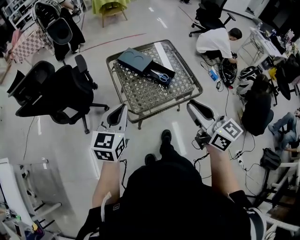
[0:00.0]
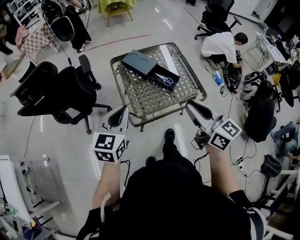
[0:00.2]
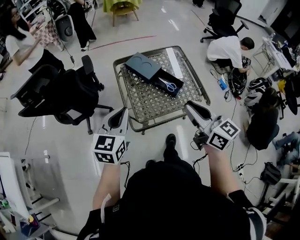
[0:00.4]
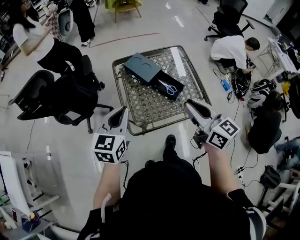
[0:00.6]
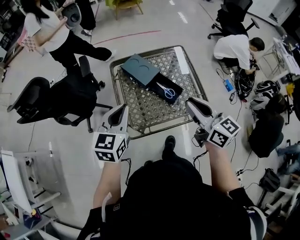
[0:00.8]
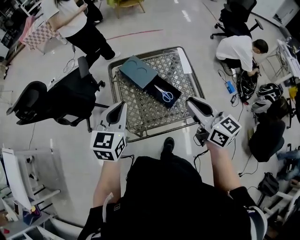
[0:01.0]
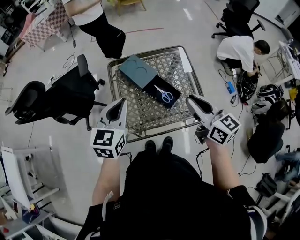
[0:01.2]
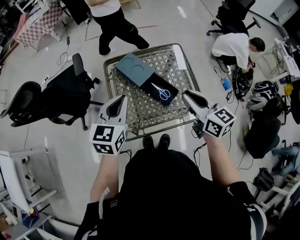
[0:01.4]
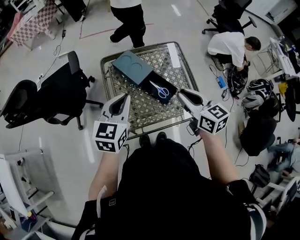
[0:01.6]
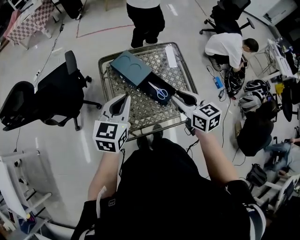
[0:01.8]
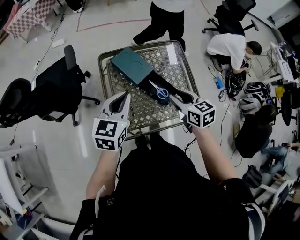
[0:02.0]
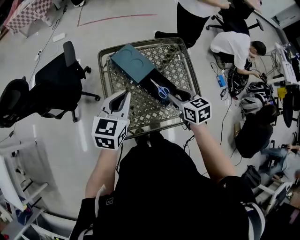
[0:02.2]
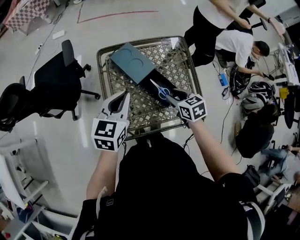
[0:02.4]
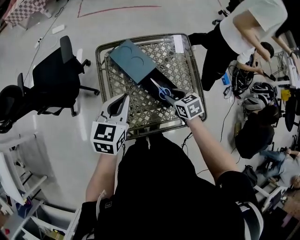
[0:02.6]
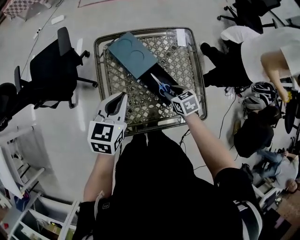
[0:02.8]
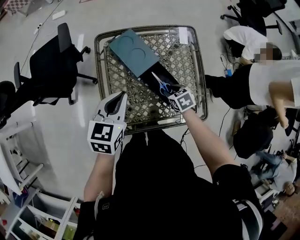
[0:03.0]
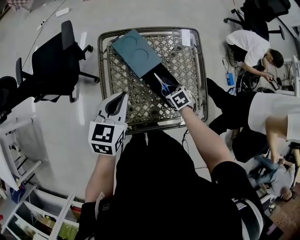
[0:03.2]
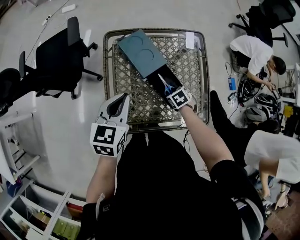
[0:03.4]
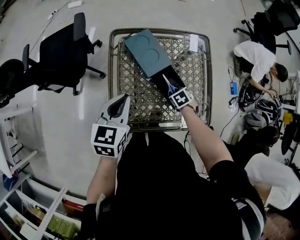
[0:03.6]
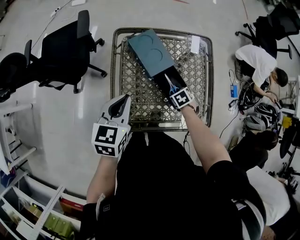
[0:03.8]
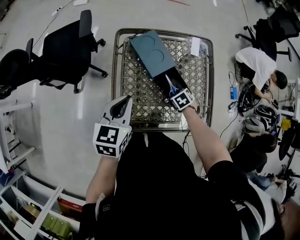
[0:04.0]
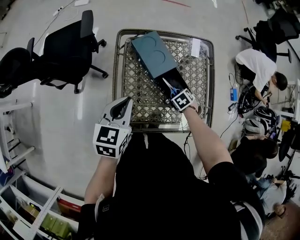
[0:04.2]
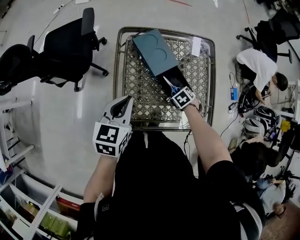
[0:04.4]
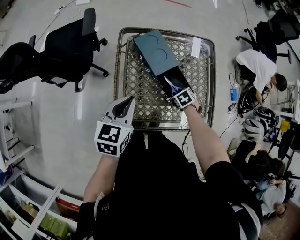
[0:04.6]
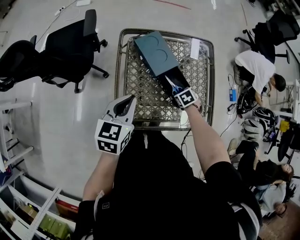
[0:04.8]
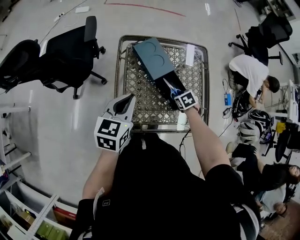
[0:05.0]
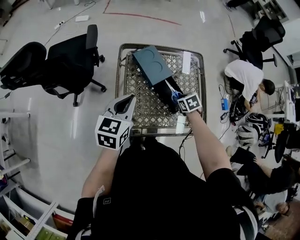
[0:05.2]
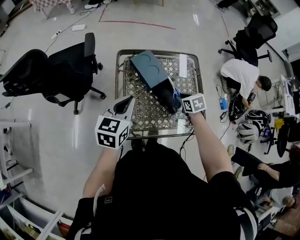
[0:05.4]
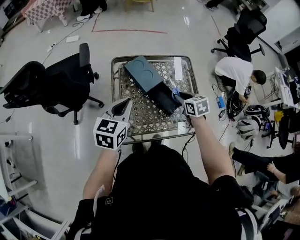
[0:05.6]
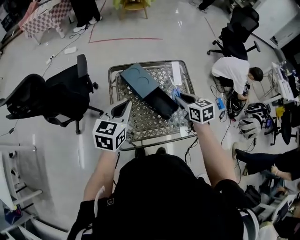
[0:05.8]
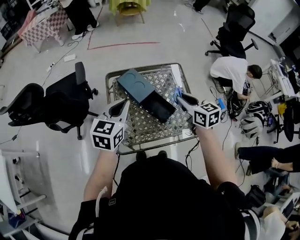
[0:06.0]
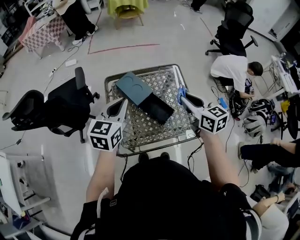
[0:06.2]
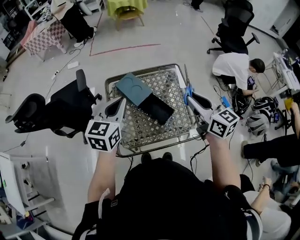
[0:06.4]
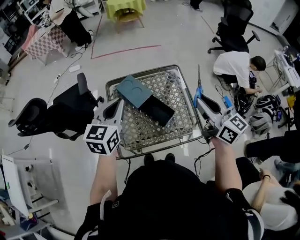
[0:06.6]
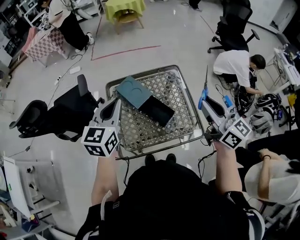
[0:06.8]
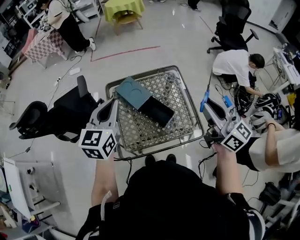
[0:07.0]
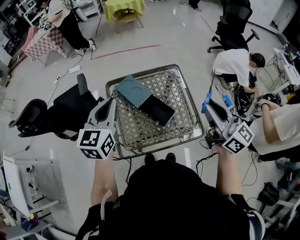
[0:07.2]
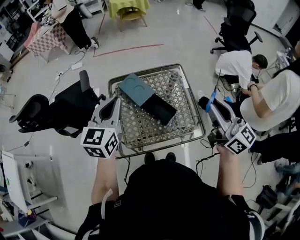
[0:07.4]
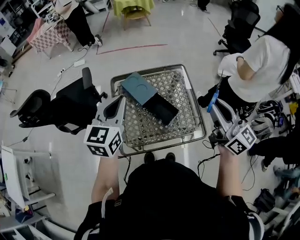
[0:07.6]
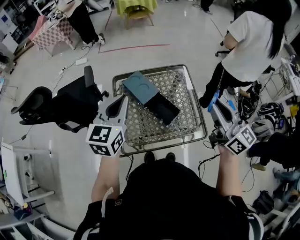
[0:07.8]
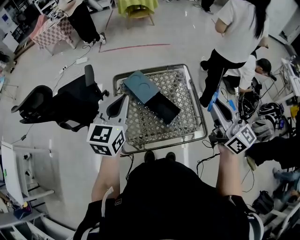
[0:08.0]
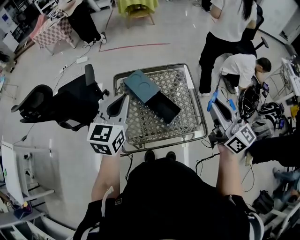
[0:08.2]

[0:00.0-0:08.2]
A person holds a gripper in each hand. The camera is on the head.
0:00.0 to 0:01.6: The left gripper travels forward and to the right by some 20 cm; the right gripper goes about 25 cm forward and downward.
0:01.6 to 0:03.2: The right gripper heads downward, covering approximately 35 cm, and angles its fingers downward, by roughly 50 degrees. Meanwhile the left gripper shifts some 10 cm downward and forward.
0:03.2 to 0:05.0: The left gripper ends up some 5 cm from where it was.
0:05.0 to 0:06.6: The left gripper heads upward and to the right, covering roughly 15 cm, while the right gripper goes approximately 40 cm upward, and points its fingers roughly 70 degrees further upward.
0:06.6 to 0:08.2: The grippers move only a little.

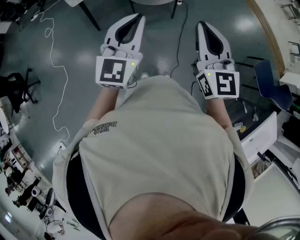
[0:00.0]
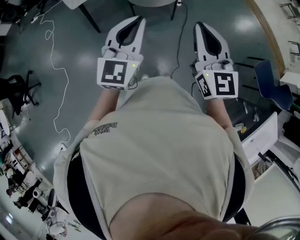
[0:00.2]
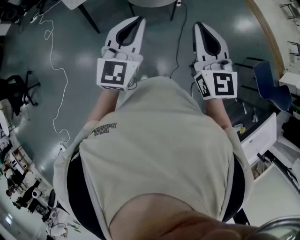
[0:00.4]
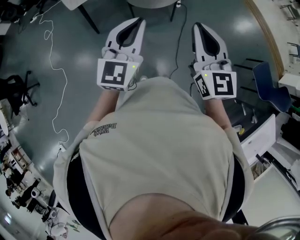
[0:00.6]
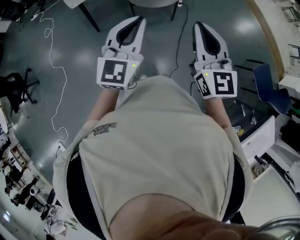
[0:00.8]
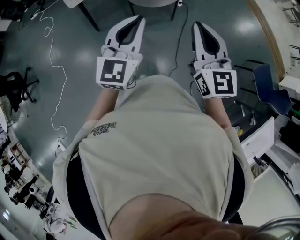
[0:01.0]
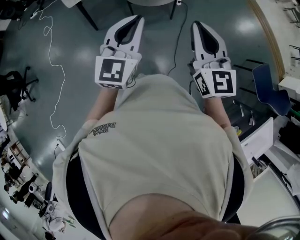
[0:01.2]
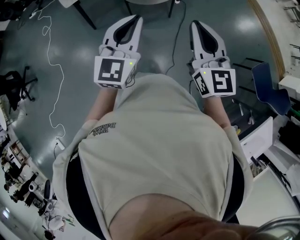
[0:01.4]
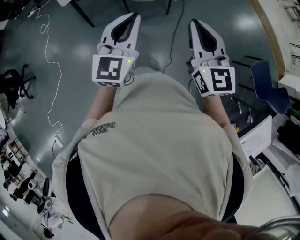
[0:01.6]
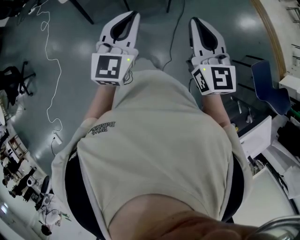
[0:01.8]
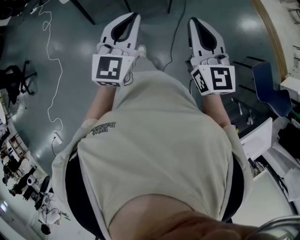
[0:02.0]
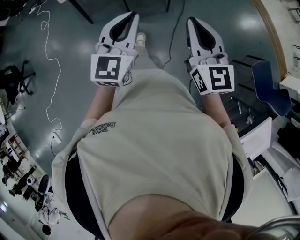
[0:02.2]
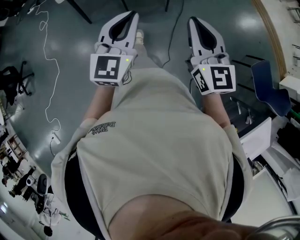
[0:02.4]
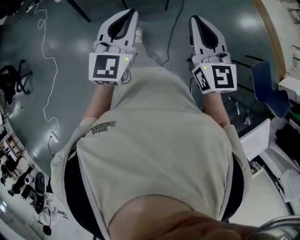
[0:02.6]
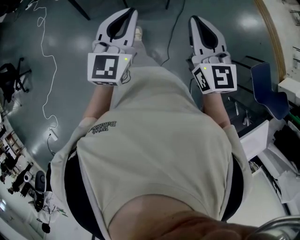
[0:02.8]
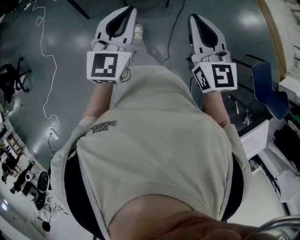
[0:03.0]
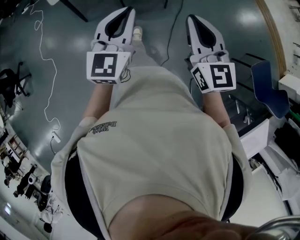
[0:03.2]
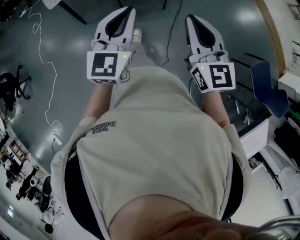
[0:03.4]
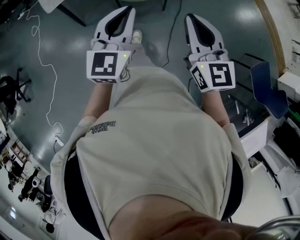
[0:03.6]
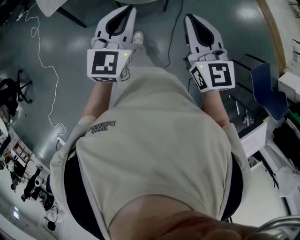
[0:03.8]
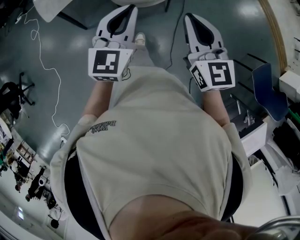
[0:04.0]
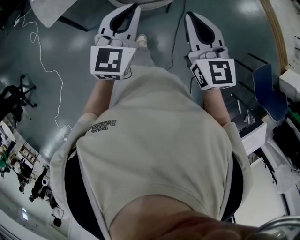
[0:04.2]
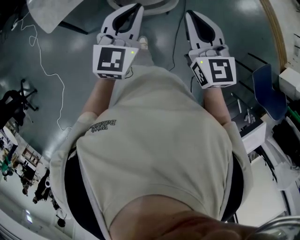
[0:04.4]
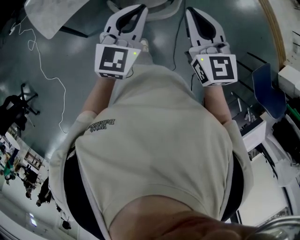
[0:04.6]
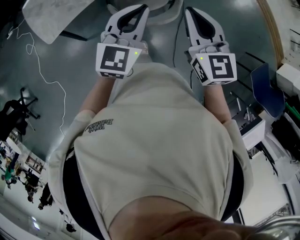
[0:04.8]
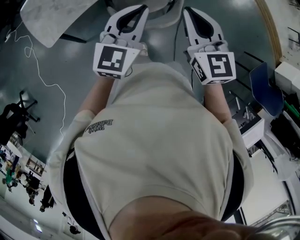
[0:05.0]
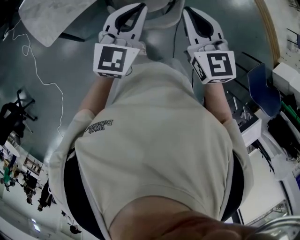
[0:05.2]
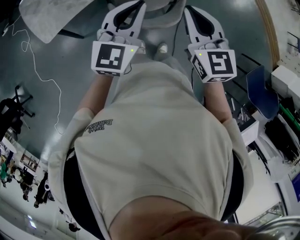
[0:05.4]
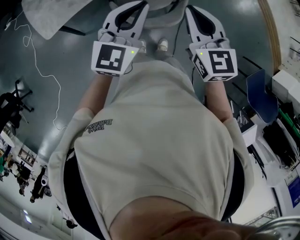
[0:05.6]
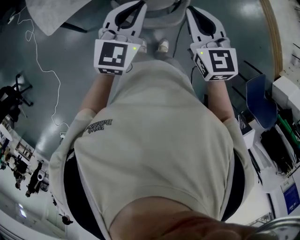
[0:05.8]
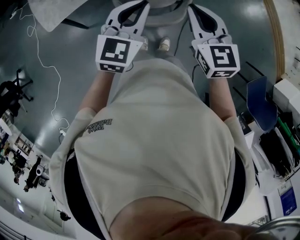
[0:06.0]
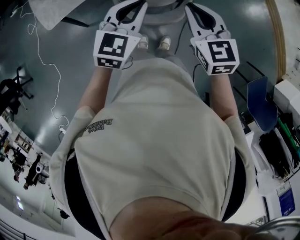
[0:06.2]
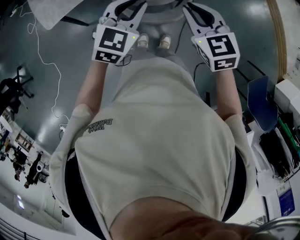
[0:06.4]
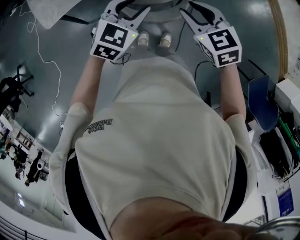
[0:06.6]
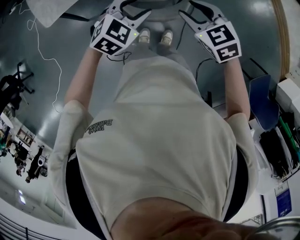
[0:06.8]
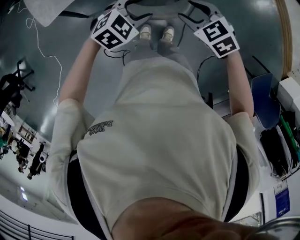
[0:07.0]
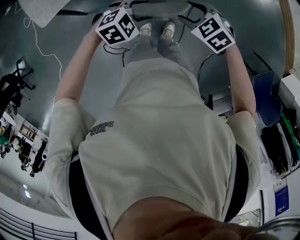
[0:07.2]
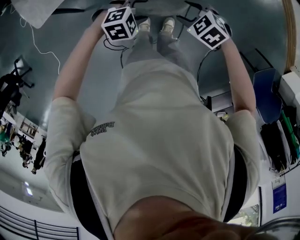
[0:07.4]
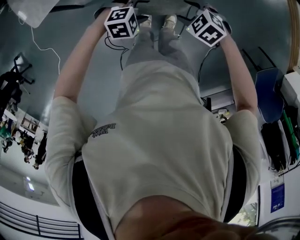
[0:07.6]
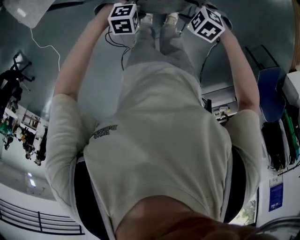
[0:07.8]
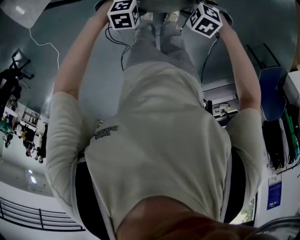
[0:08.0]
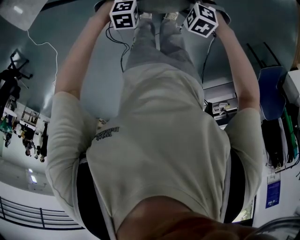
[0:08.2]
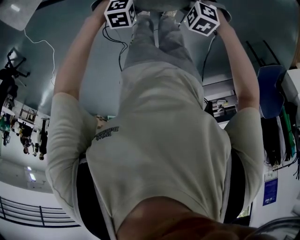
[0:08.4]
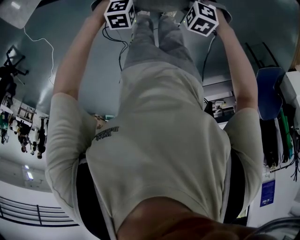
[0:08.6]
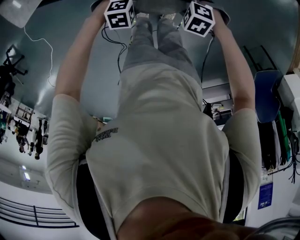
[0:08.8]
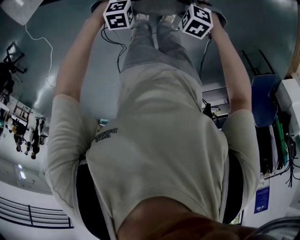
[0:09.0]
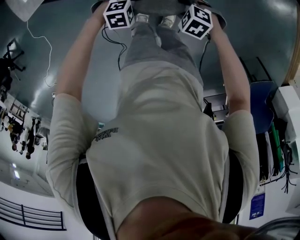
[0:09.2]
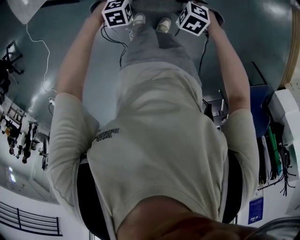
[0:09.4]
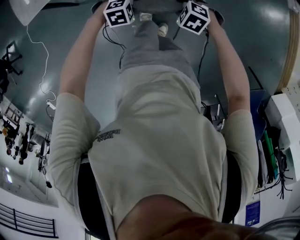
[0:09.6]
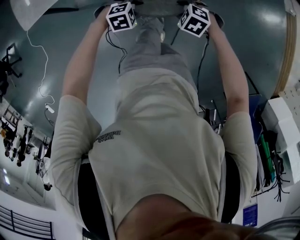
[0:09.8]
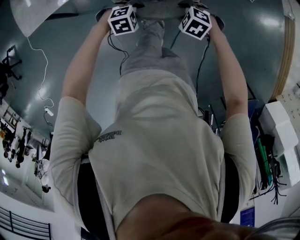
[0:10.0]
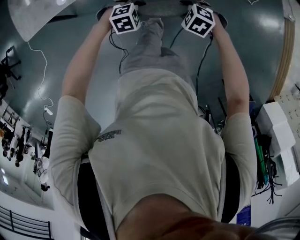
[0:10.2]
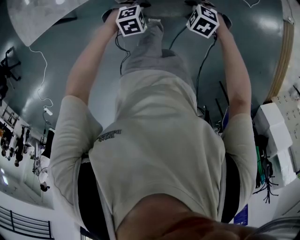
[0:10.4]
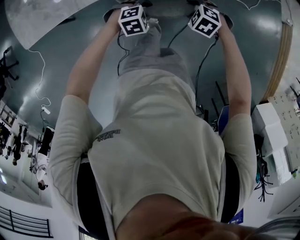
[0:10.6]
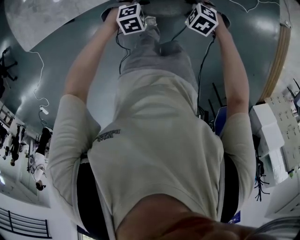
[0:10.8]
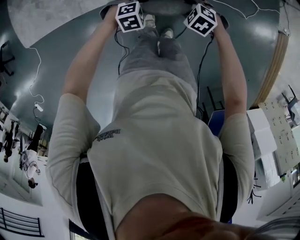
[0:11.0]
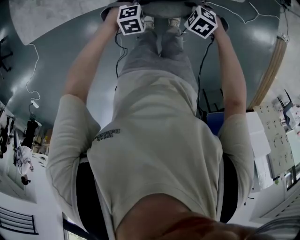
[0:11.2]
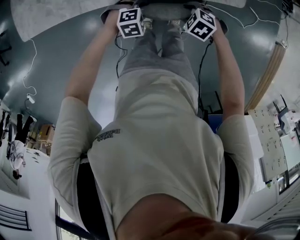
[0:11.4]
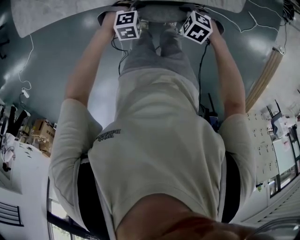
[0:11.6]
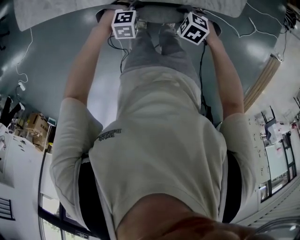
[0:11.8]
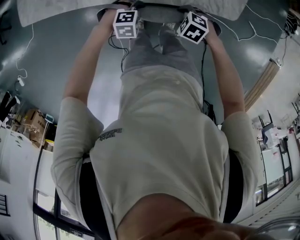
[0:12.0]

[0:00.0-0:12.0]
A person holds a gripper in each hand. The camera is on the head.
0:00.0 to 0:01.6: Both grippers travel together to the right, approximately 5 cm.
0:01.6 to 0:03.0: The left gripper changes place by roughly 5 cm. The right gripper ends up some 5 cm from where it was.
0:03.0 to 0:04.4: The two grippers go about 30 cm forward.
0:04.4 to 0:06.0: Both grippers travel together forward, about 10 cm.
0:06.0 to 0:07.6: Both grippers travel together downward, about 30 cm. The left gripper points its fingers some 40 degrees further downward, and opens up. Meanwhile the right gripper points its fingers some 40 degrees further downward, and opens up.
0:07.6 to 0:09.0: The grippers both shift downward by approximately 10 cm.
0:09.0 to 0:10.4: The left gripper moves approximately 25 cm, and turns by about 20 degrees. The right gripper moves some 25 cm.
0:10.4 to 0:12.0: The left gripper shifts by about 10 cm, while the right gripper moves approximately 15 cm.

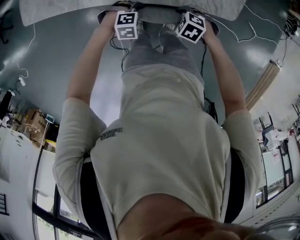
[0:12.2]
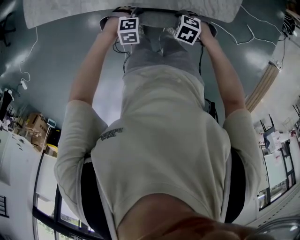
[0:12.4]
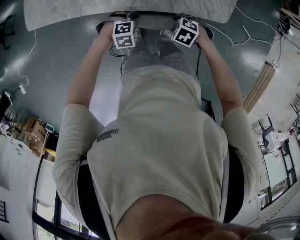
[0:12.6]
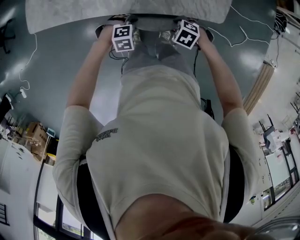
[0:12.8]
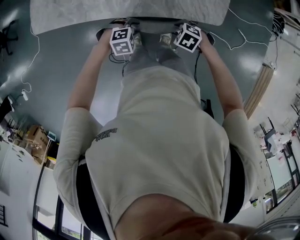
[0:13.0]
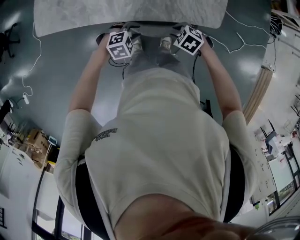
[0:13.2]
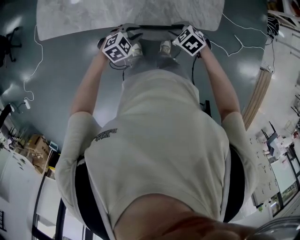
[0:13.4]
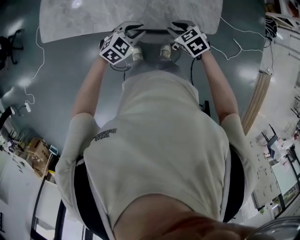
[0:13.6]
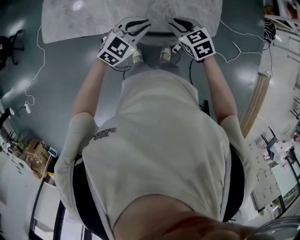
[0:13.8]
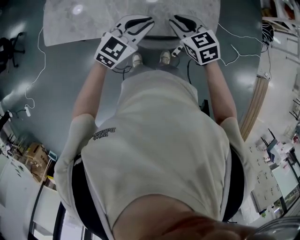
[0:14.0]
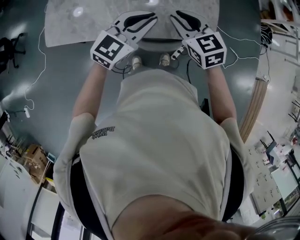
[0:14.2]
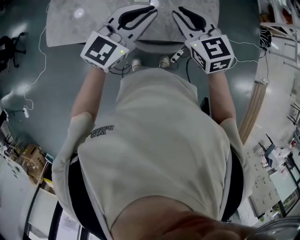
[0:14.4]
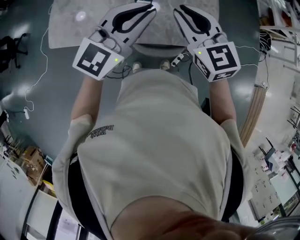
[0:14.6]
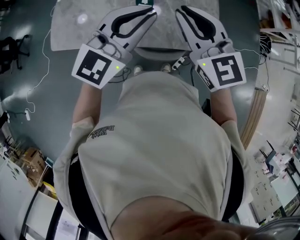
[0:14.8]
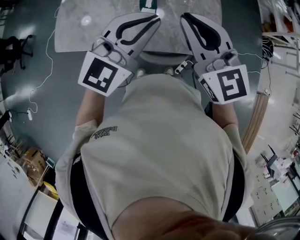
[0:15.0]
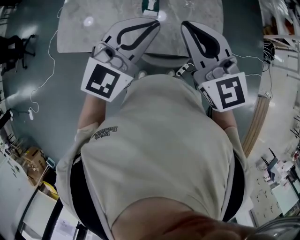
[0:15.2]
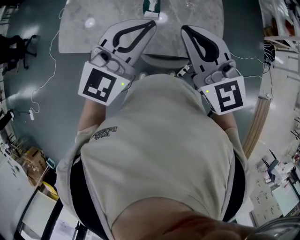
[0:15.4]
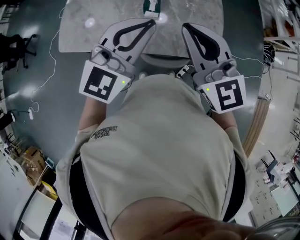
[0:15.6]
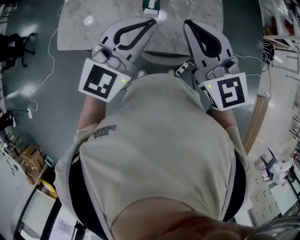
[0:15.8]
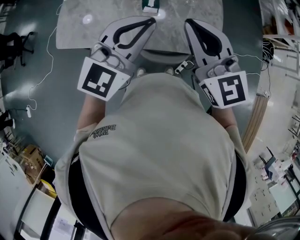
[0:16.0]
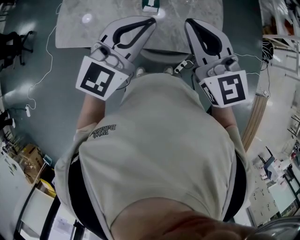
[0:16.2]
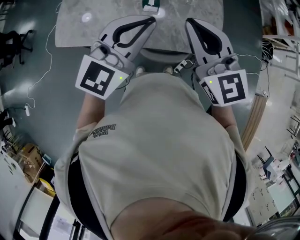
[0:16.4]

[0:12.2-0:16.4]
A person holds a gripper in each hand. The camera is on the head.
0:12.2 to 0:13.6: The grippers both shift upward by roughly 20 cm. The right gripper swivels about 30 degrees; the left gripper tilts its fingers about 30 degrees upward.
0:13.6 to 0:15.0: Both grippers move upward, some 35 cm. The left gripper angles its fingers upward, by roughly 40 degrees; the right gripper tilts its fingers some 50 degrees upward.
0:15.0 to 0:16.4: There are only small adjustments of the grippers.
